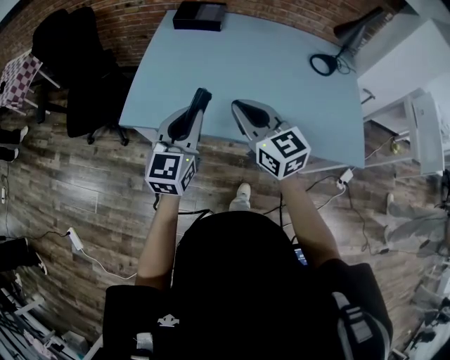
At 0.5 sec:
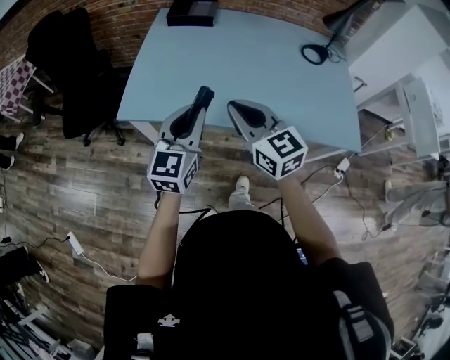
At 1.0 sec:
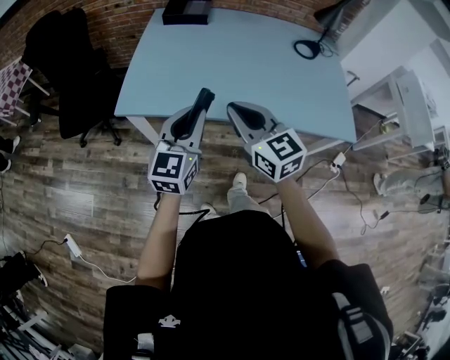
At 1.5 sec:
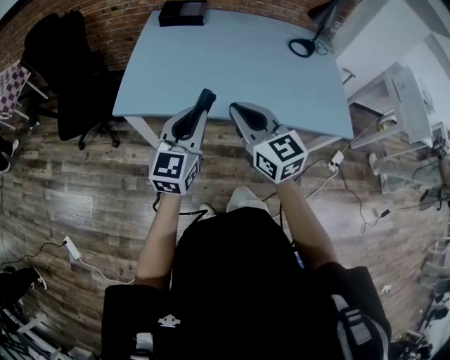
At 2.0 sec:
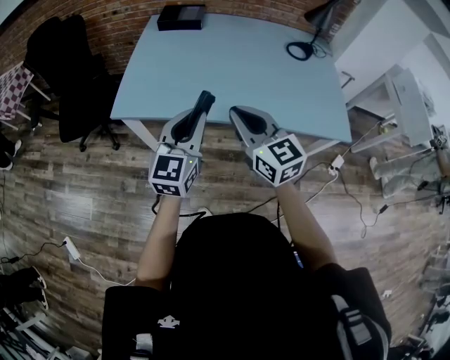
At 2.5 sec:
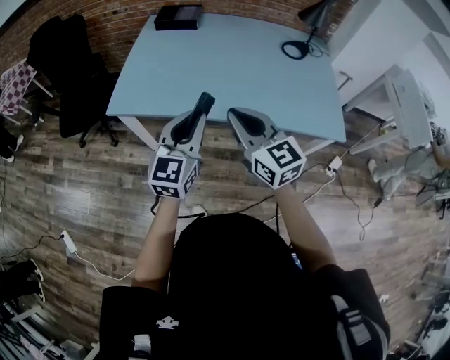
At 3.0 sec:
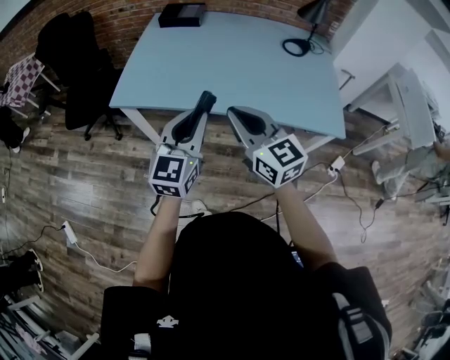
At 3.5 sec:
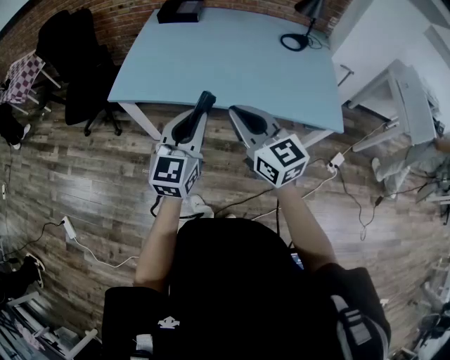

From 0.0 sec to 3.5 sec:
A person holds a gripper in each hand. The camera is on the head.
From 0.0 sec to 2.0 sec: The two grippers go about 10 cm backward.
From 2.0 sec to 3.5 sec: Both grippers move backward and to the right, about 10 cm.

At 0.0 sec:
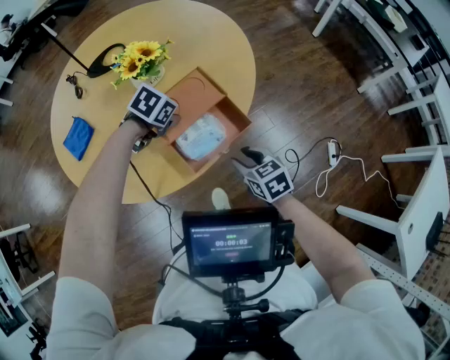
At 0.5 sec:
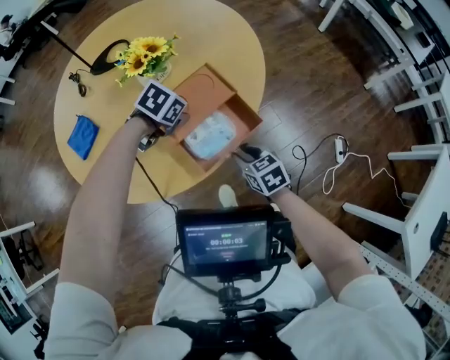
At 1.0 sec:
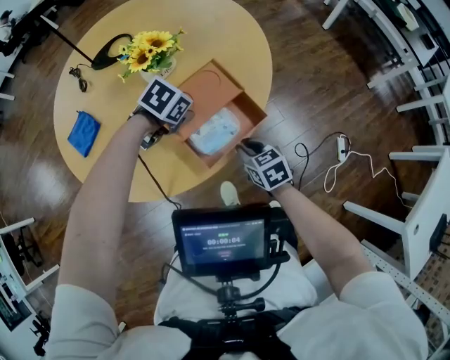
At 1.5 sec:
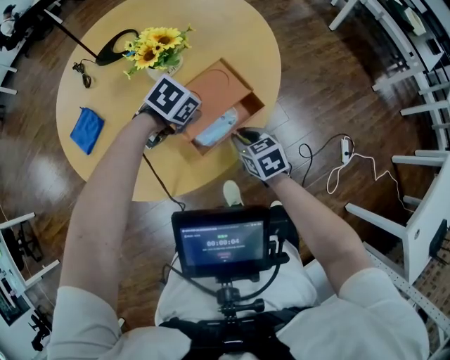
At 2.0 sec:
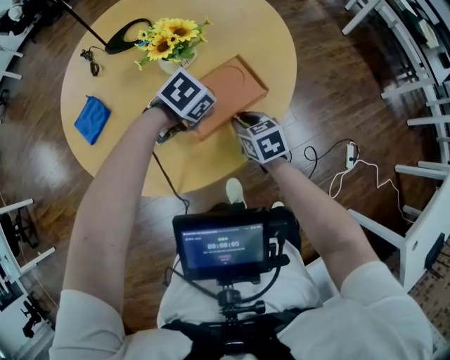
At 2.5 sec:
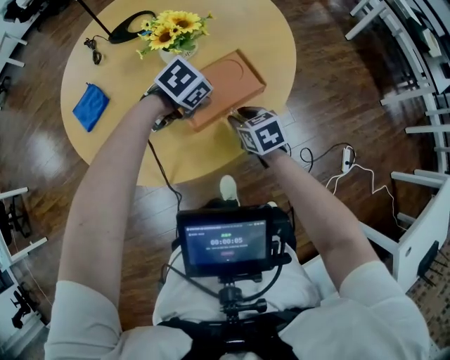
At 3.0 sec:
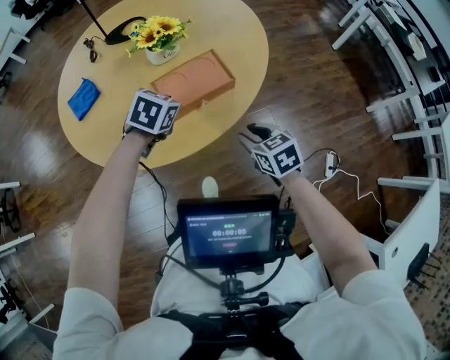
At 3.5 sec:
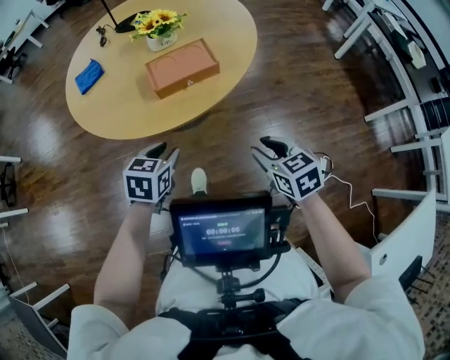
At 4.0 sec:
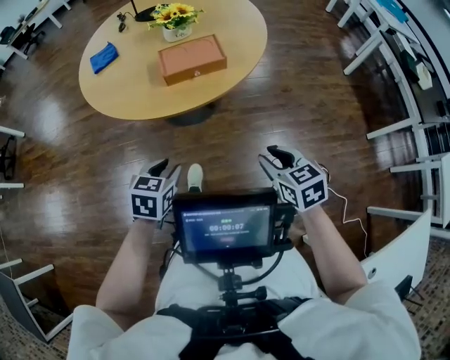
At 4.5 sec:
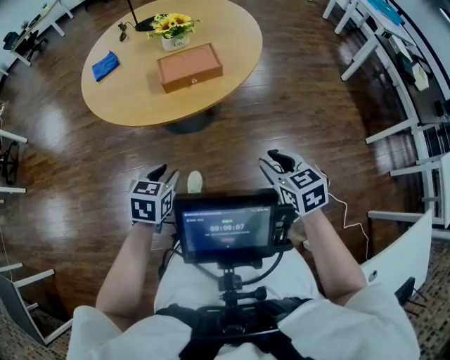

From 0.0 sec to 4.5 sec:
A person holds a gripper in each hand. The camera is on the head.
From 0.0 sec to 2.0 sec: The right gripper goes roughly 15 cm to the left and forward, and closes up.
From 2.0 sec to 4.5 sec: The right gripper moves about 40 cm. Meanwhile the left gripper ends up about 35 cm from where it was, and changes its angle by about 60 degrees.

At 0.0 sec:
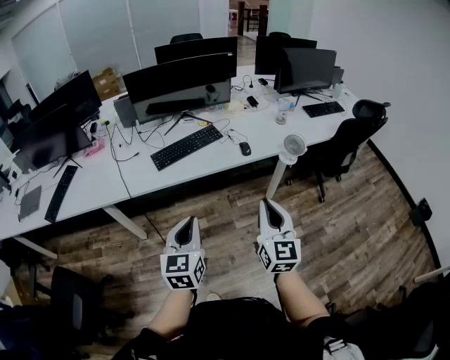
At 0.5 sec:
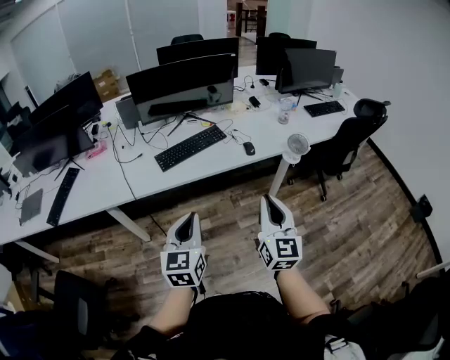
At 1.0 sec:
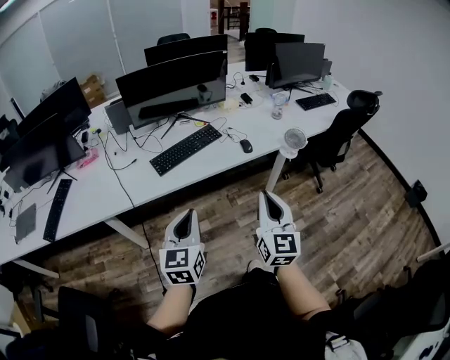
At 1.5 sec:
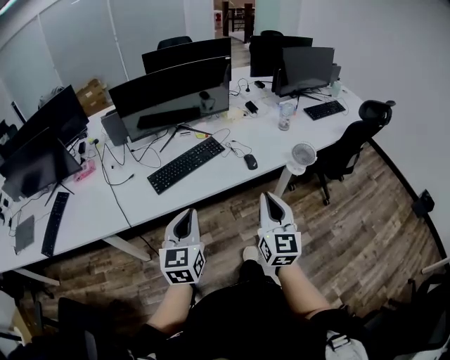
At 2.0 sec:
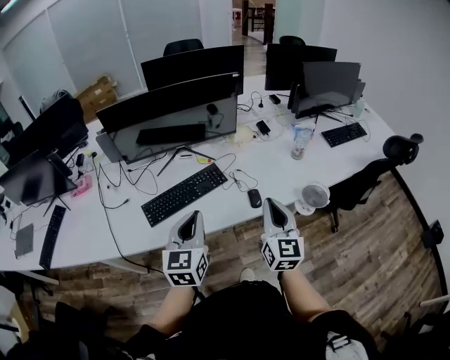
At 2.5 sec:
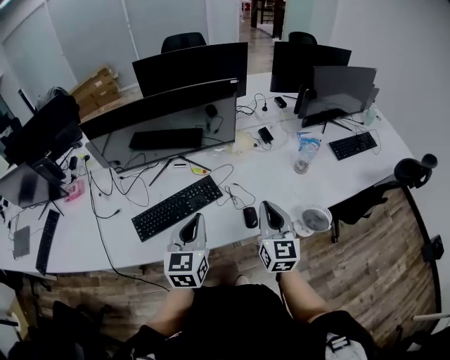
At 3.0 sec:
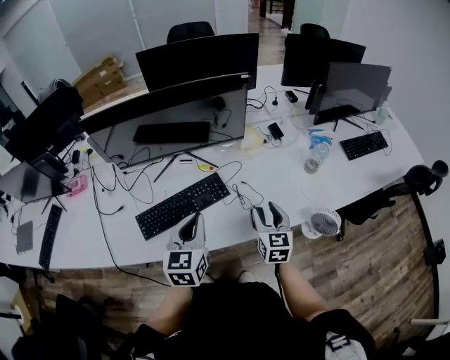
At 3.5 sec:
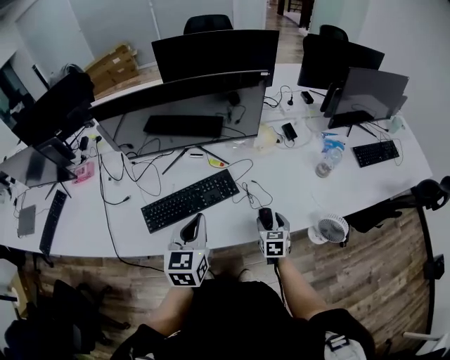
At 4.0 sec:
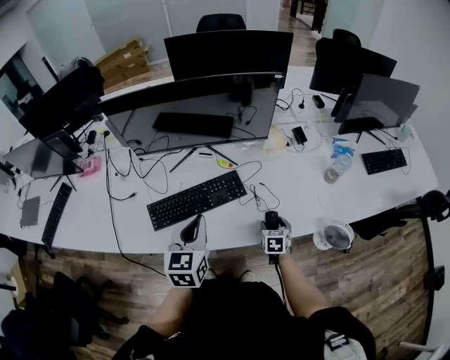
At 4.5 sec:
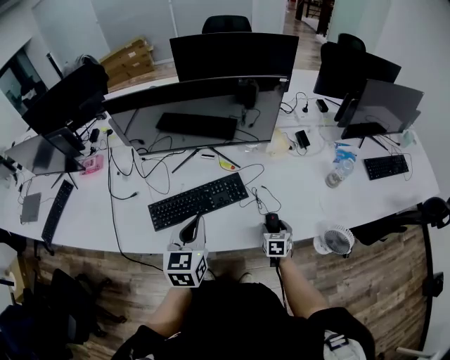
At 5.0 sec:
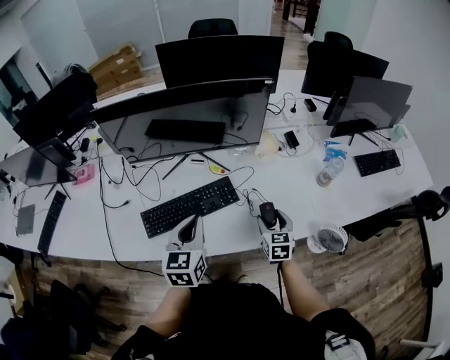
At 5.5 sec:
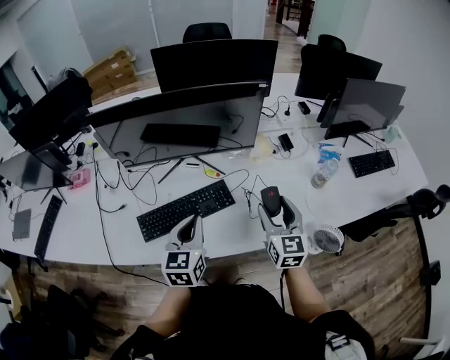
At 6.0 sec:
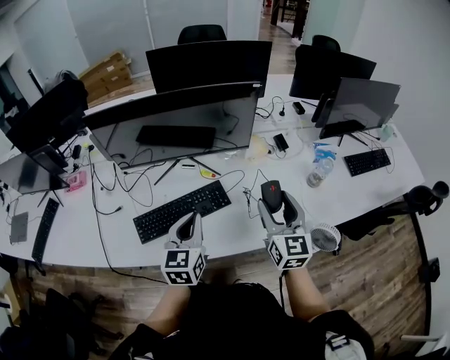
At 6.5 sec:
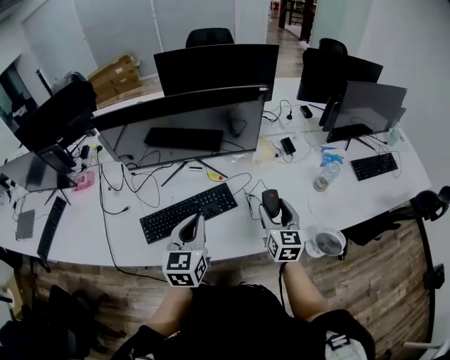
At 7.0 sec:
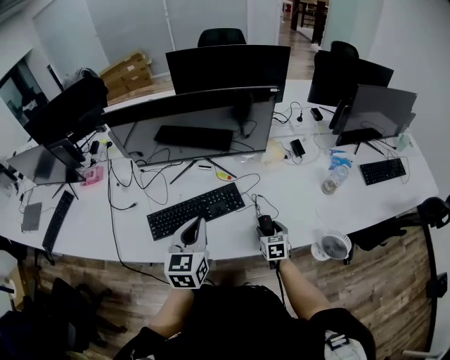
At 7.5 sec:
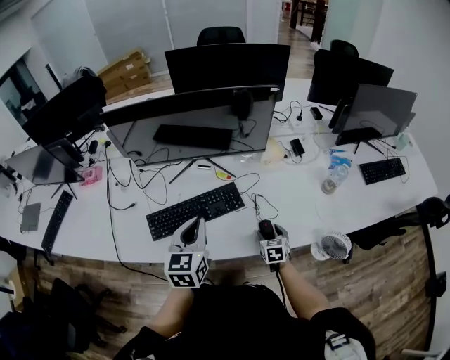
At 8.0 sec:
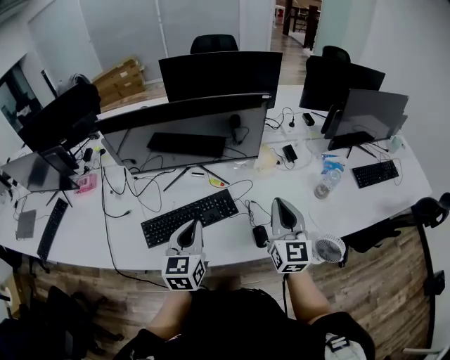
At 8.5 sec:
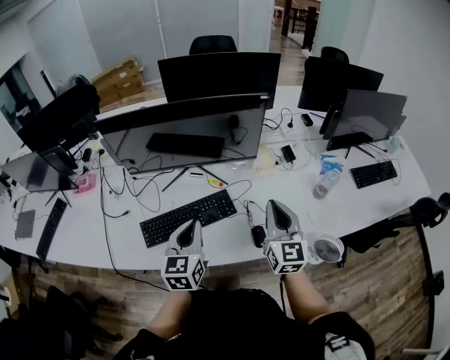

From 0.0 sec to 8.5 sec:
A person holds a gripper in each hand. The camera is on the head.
From 0.0 sec to 2.0 sec: Both grippers travel together forward, about 35 cm.
From 2.0 sec to 4.0 sec: The left gripper moves forward and downward, about 15 cm; the right gripper goes about 35 cm downward and forward, points its fingers roughly 50 degrees further downward, and opens its fingers.
From 4.0 sec to 6.5 sec: The right gripper goes some 25 cm upward, and tips its fingers upward by some 30 degrees.
From 6.5 sec to 8.5 sec: The right gripper reaches about 20 cm downward, then returns, and closes its fingers.

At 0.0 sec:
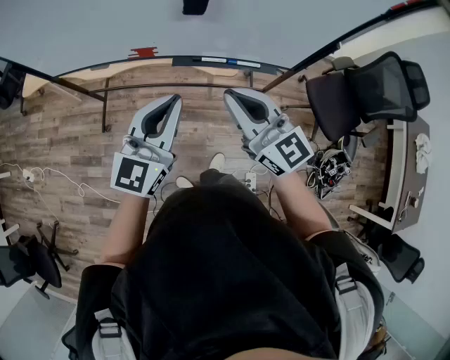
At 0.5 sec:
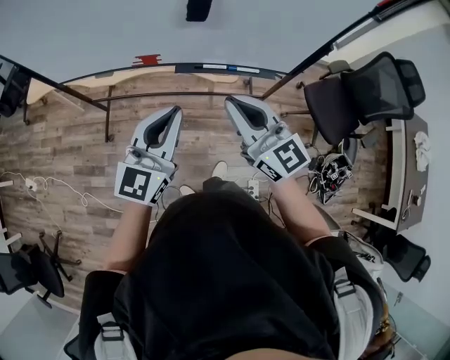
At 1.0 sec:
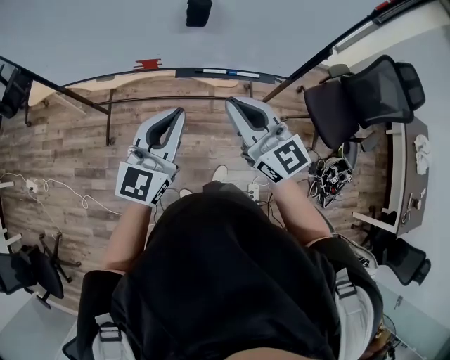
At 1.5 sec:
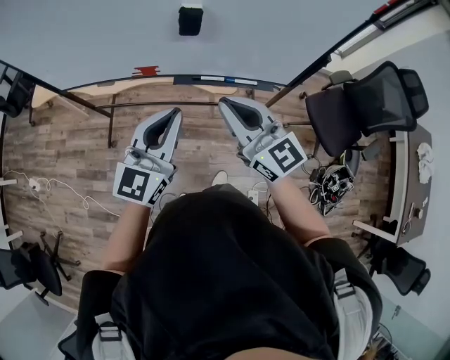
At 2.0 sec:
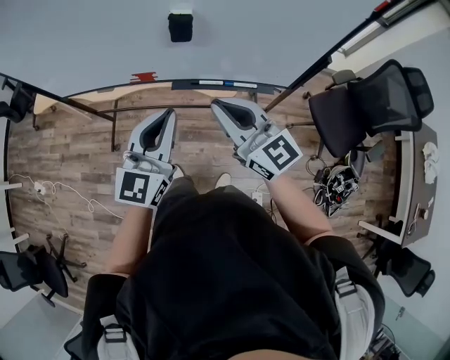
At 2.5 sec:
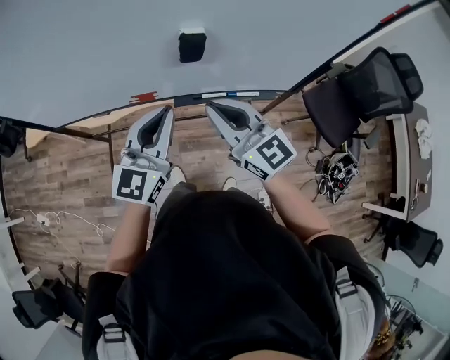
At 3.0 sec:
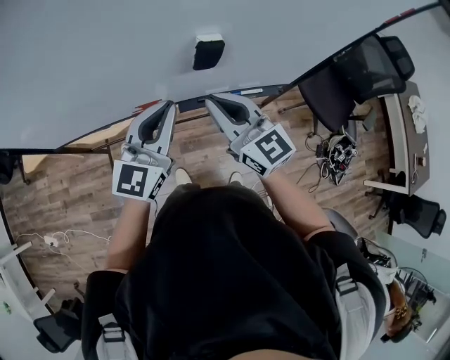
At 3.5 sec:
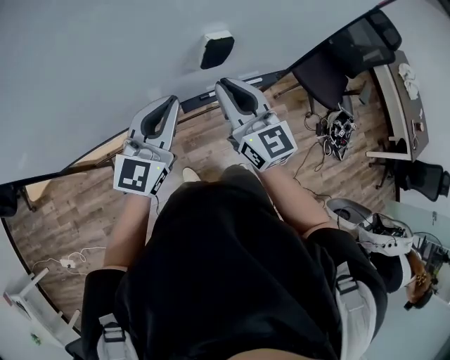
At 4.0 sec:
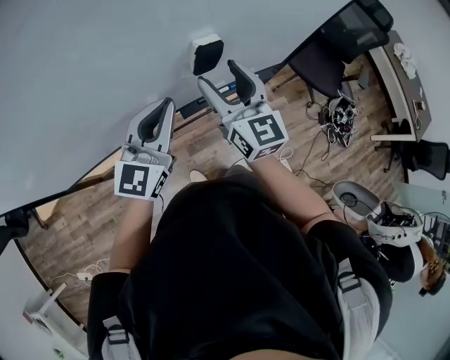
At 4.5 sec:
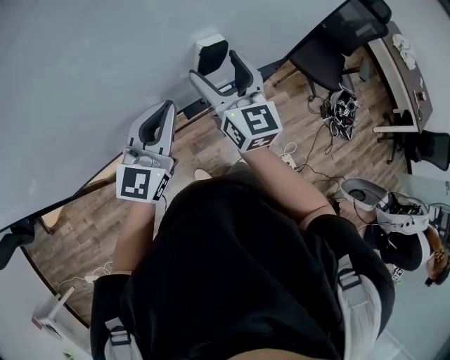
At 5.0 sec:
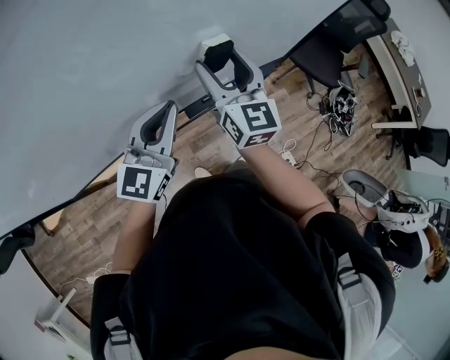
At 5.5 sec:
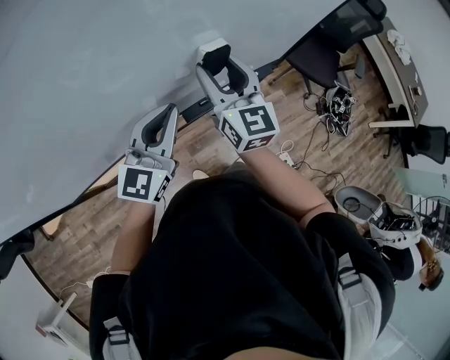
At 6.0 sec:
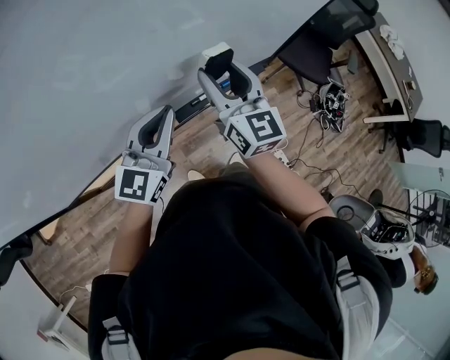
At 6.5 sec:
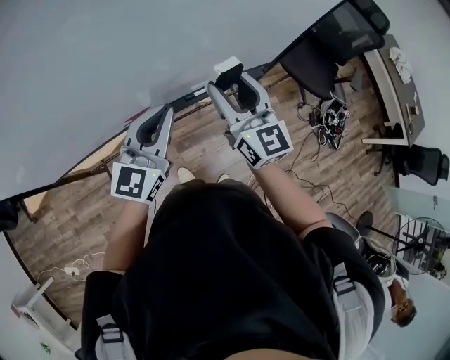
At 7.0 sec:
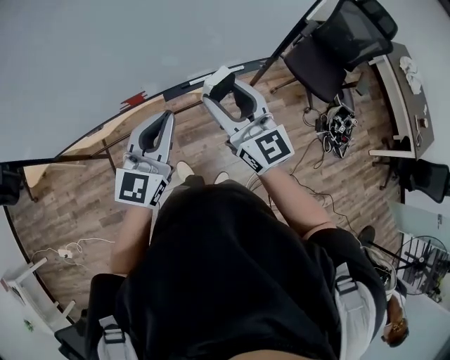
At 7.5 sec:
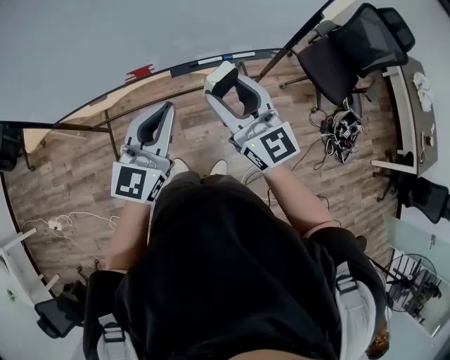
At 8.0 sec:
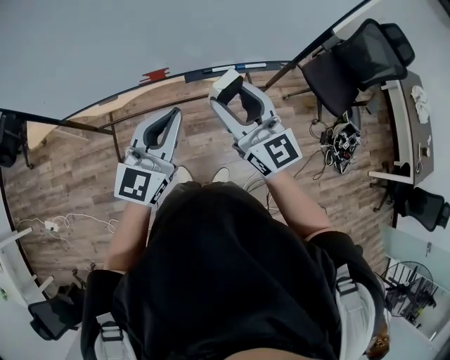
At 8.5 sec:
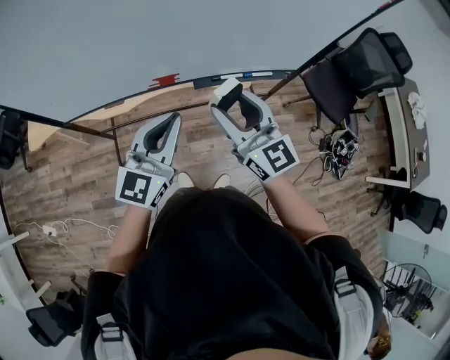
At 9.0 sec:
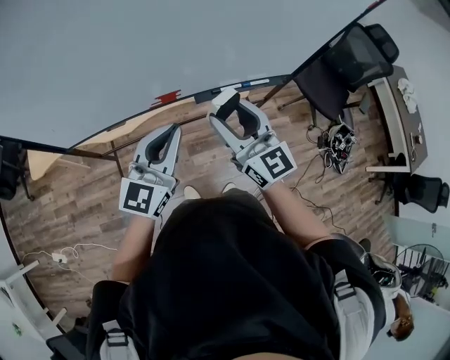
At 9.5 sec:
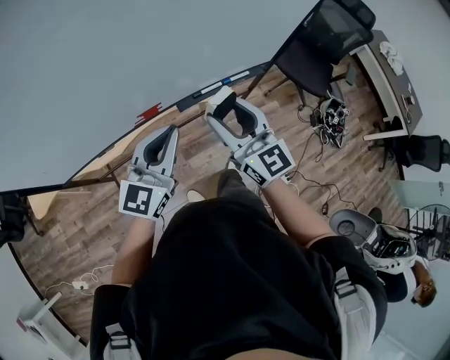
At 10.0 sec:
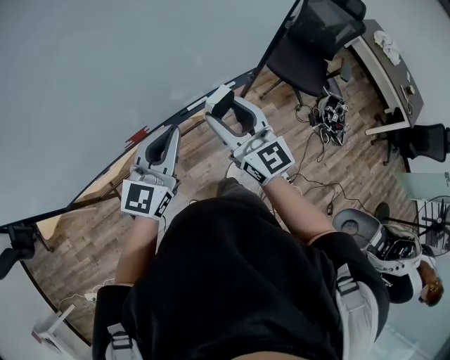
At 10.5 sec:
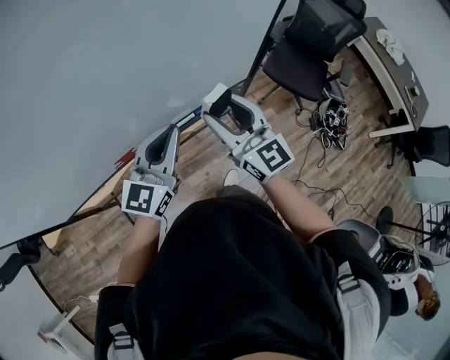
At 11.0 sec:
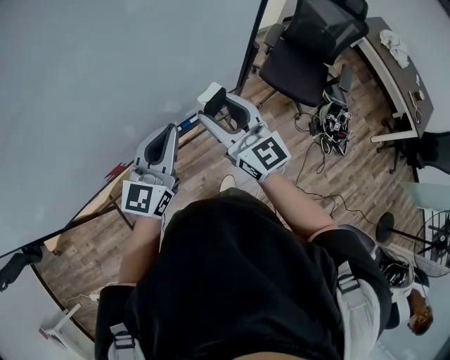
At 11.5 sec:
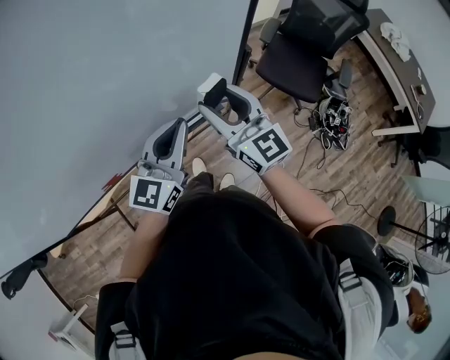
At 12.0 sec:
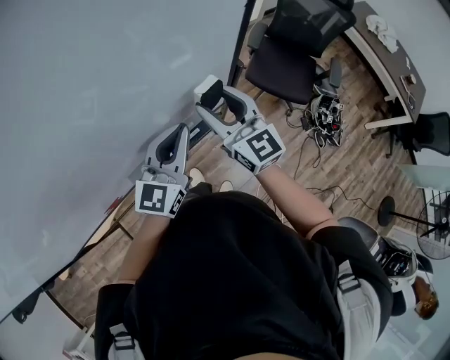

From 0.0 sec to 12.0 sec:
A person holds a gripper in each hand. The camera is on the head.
From 0.0 sec to 2.0 sec: There are only small adjustments of the grippers.
From 2.0 sec to 4.0 sec: The left gripper shifts by about 20 cm, and changes its angle by about 30 degrees; the right gripper moves approximately 20 cm, rotates about 50 degrees, and opens.
From 4.0 sec to 6.0 sec: The grippers stay close to where they were, moving slightly.
From 6.0 sec to 8.0 sec: The grippers both shift backward by some 20 cm. The right gripper swivels approximately 30 degrees.
From 8.0 sec to 10.0 sec: The grippers both shift forward by roughly 10 cm. The left gripper moves roughly 10 cm to the left and comes back.
From 10.0 sec to 12.0 sec: The grippers both shift forward and to the right by some 30 cm.
